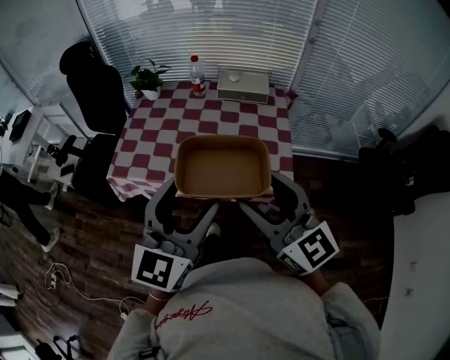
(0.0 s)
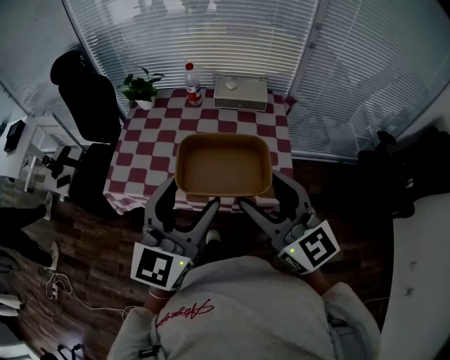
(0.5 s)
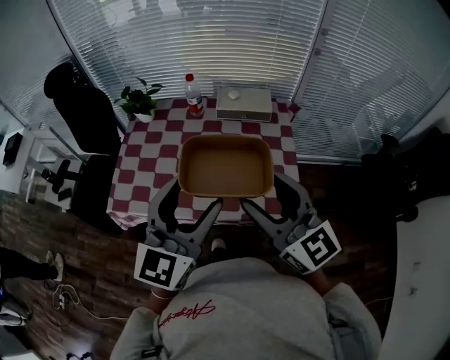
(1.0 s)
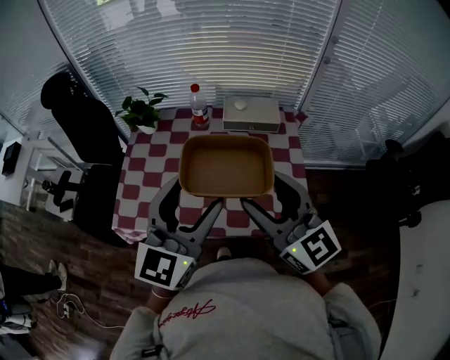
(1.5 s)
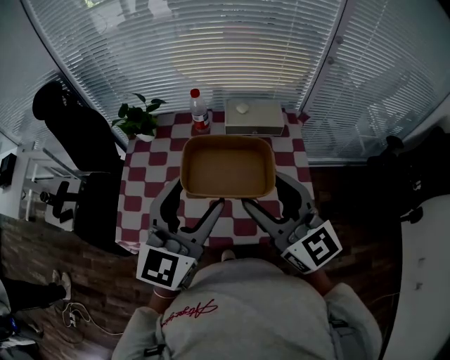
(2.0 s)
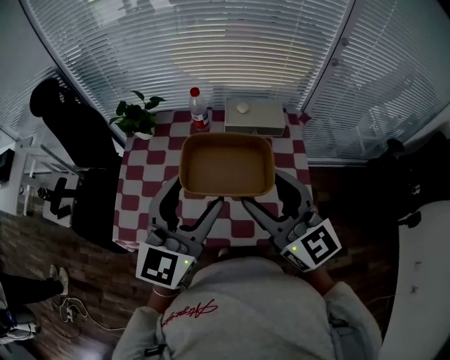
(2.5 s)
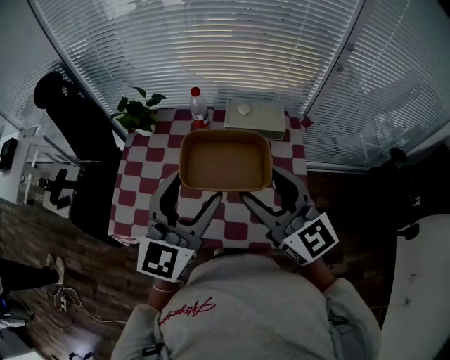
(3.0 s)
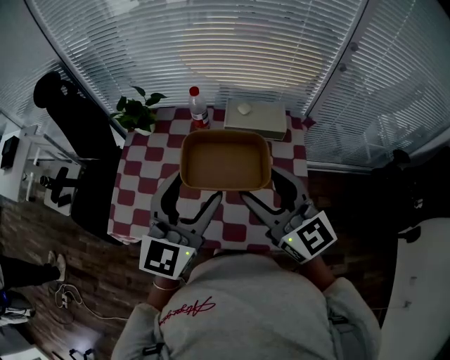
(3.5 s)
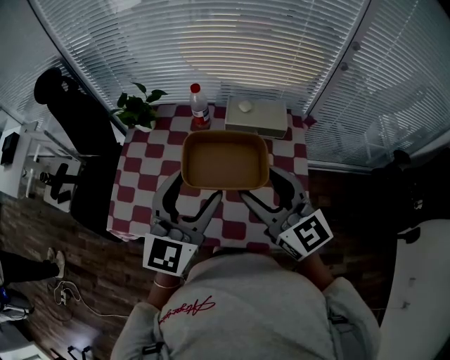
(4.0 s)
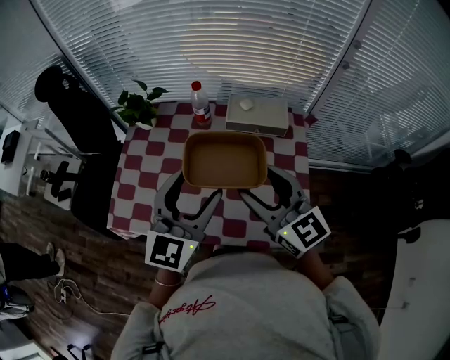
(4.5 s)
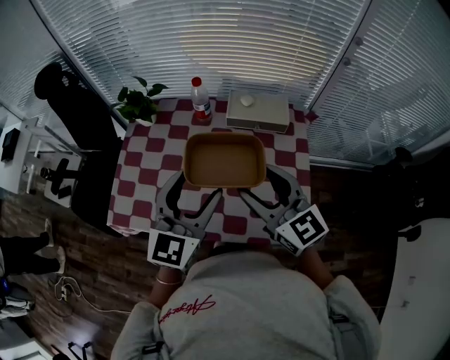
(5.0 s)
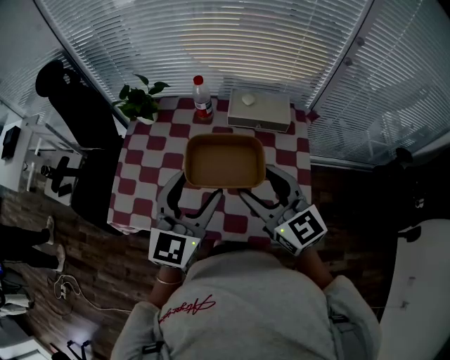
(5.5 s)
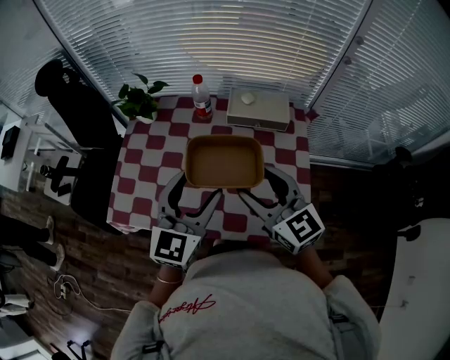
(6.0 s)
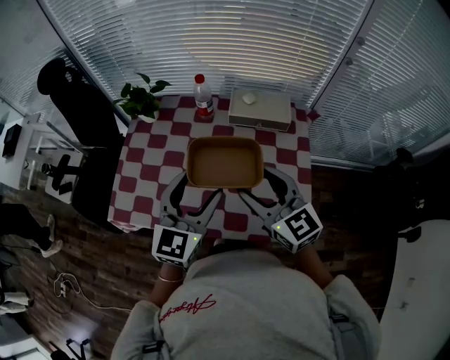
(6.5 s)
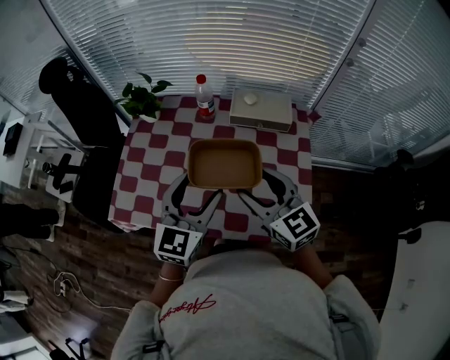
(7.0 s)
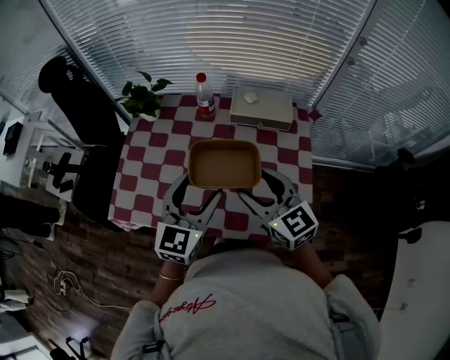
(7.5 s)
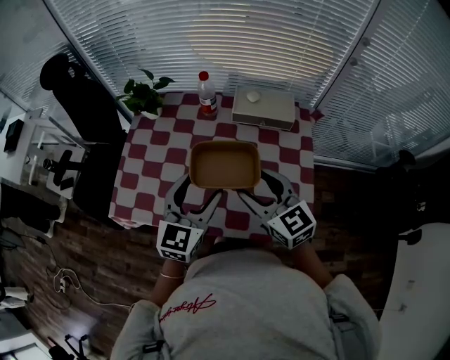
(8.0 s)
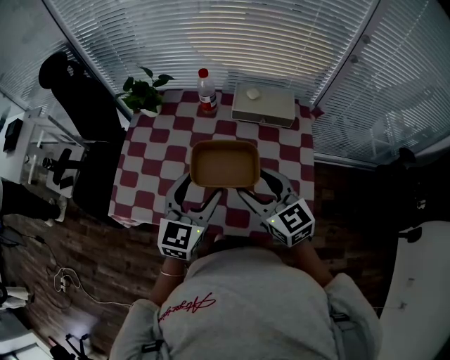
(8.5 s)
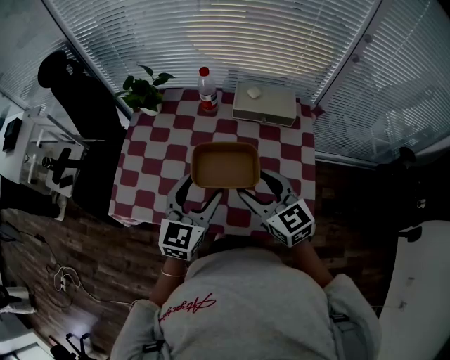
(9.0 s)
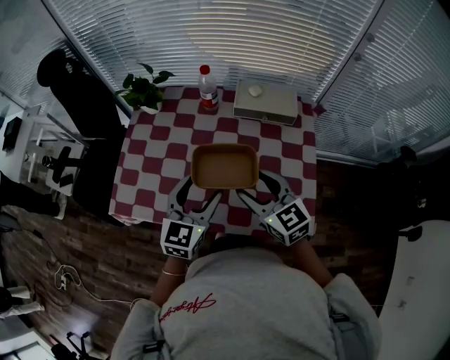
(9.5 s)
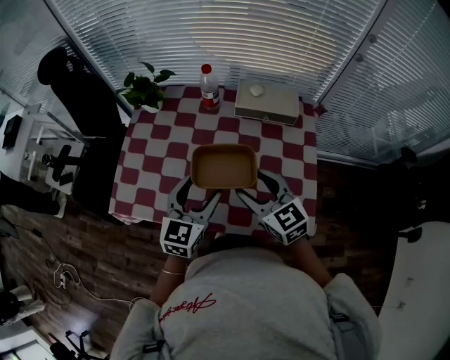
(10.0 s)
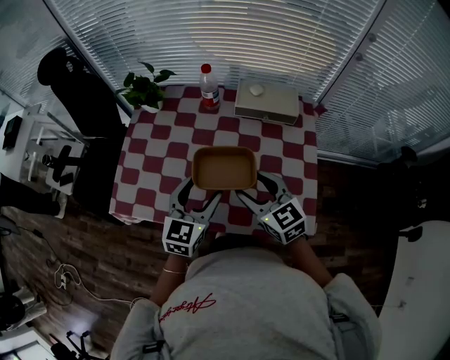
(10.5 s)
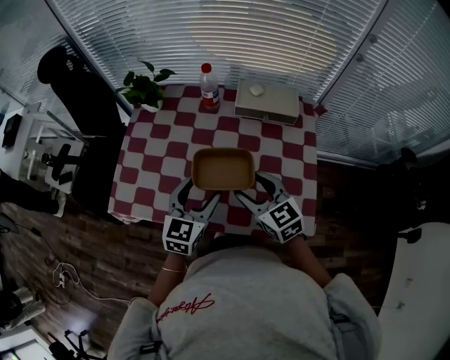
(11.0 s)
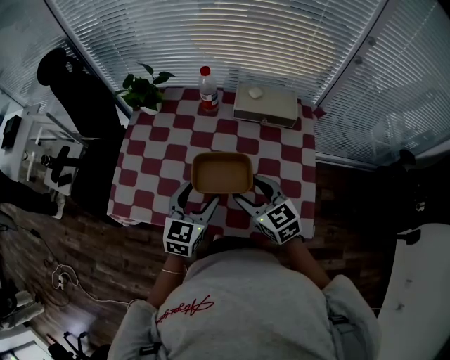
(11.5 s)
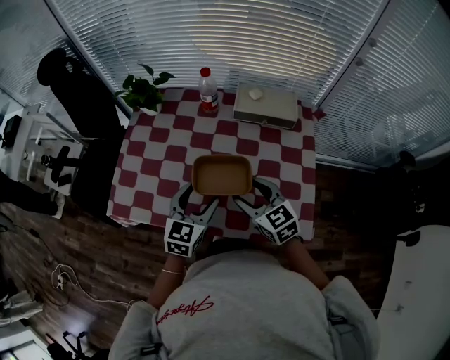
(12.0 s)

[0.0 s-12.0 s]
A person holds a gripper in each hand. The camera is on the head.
0.0 to 2.0 s: Both grippers travel together forward, about 25 cm.
2.0 to 4.0 s: The right gripper heads forward, covering approximately 5 cm; the left gripper moves approximately 5 cm.
4.0 to 6.0 s: The grippers move only a little.
6.0 to 8.0 s: The grippers stay close to where they were, moving slightly.
8.0 to 10.0 s: The left gripper moves roughly 5 cm.
10.0 to 12.0 s: The two grippers go roughly 5 cm downward.

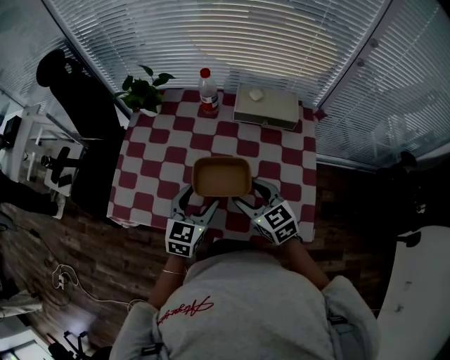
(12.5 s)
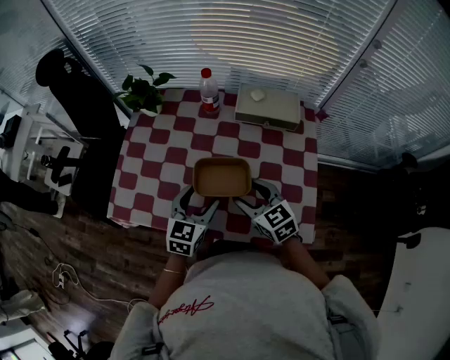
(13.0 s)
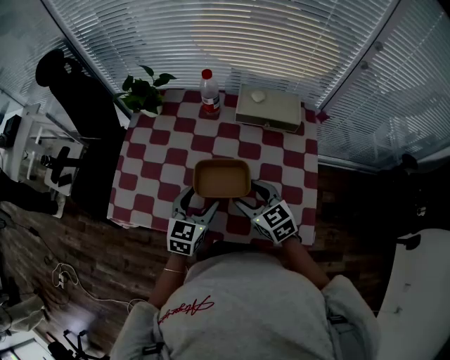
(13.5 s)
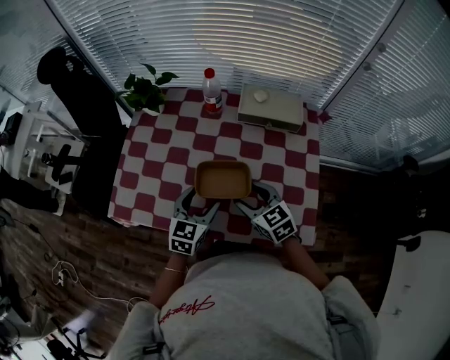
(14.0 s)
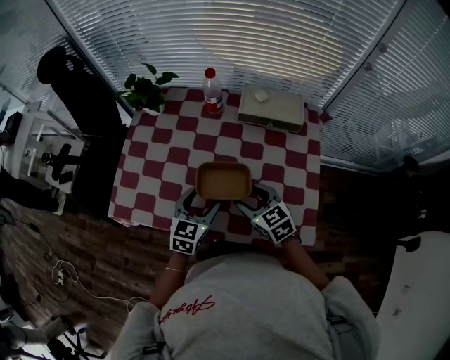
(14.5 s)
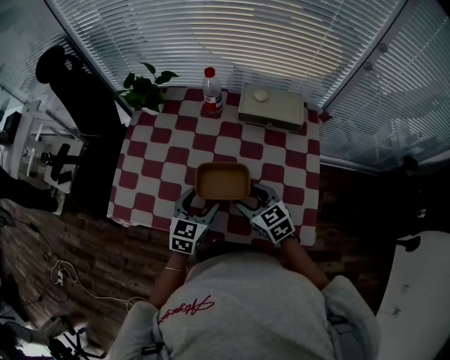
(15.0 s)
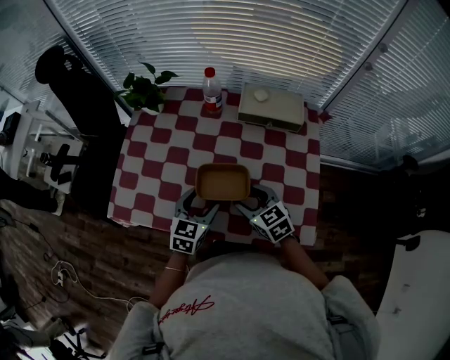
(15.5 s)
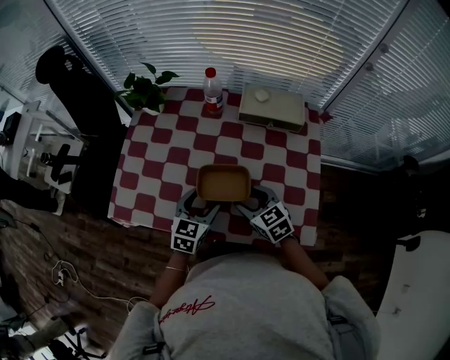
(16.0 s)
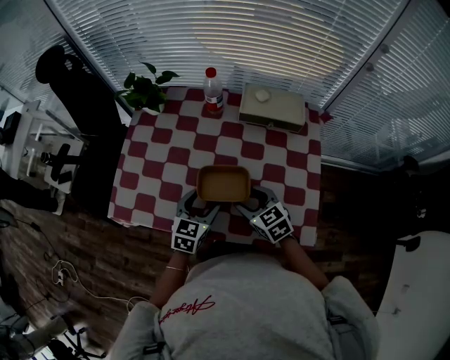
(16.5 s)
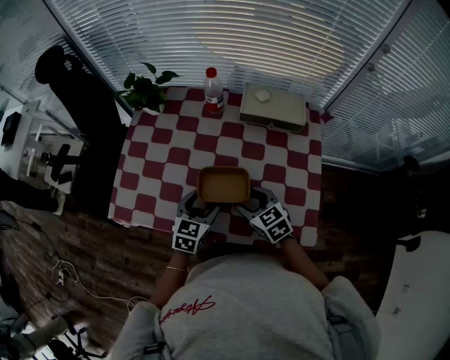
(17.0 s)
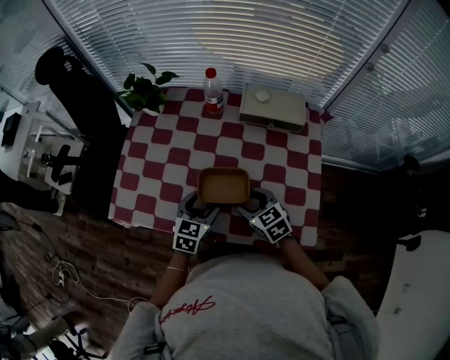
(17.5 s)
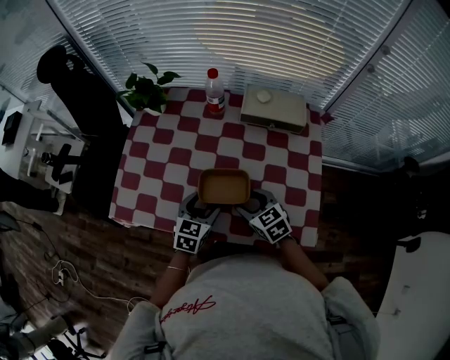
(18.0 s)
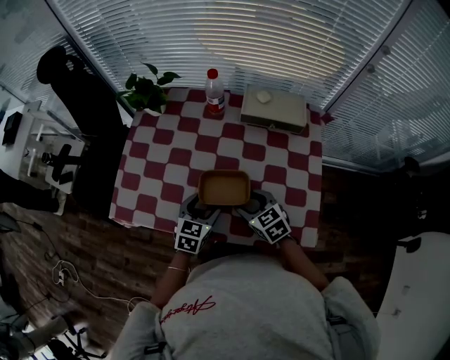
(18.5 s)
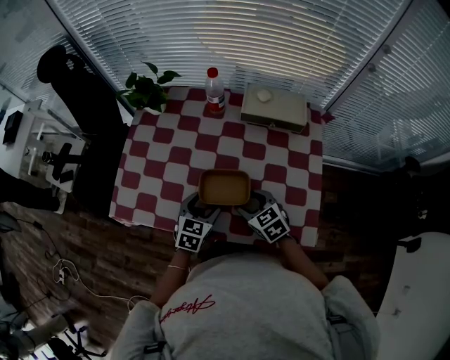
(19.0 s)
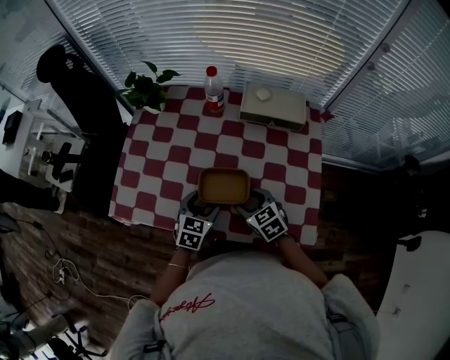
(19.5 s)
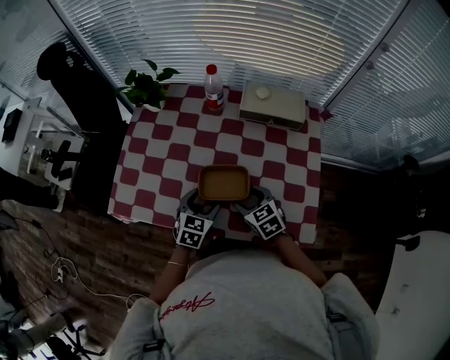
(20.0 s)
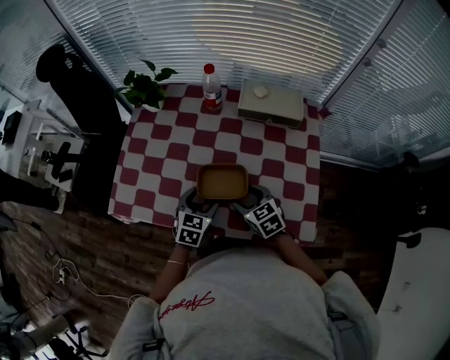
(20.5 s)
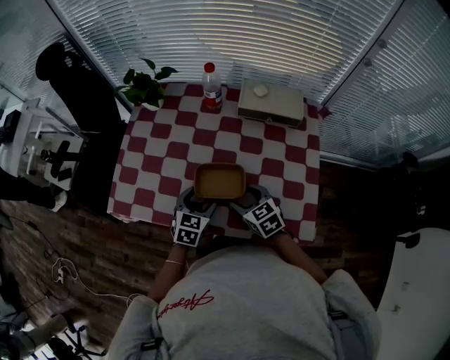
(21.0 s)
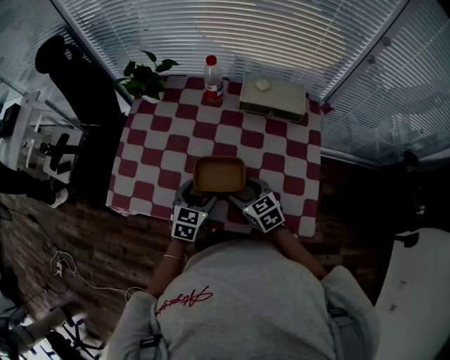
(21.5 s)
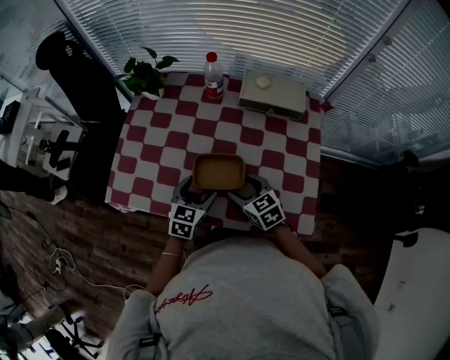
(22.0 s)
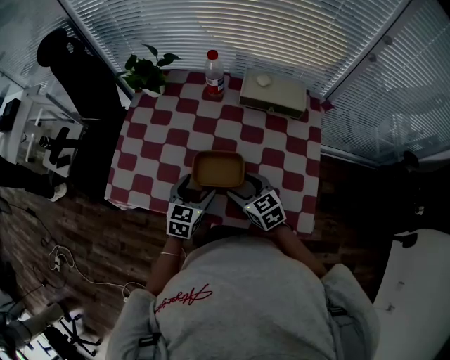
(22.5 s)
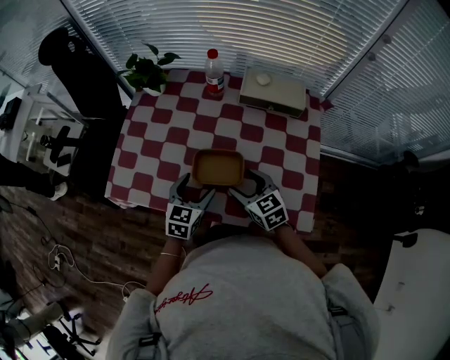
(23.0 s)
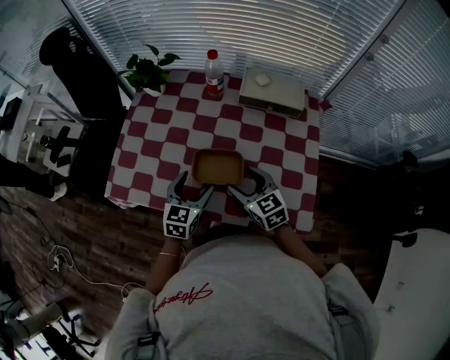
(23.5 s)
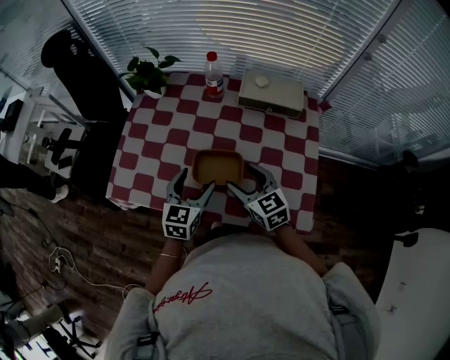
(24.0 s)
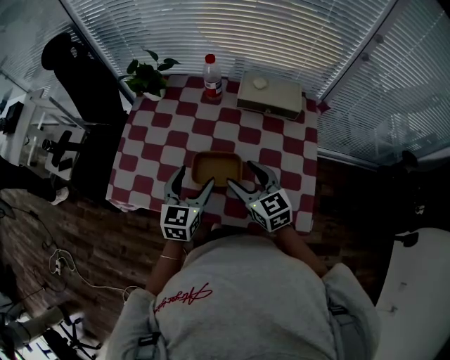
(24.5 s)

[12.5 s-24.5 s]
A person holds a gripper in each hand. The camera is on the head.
12.5 to 14.5 s: There are only small adjustments of the grippers.
14.5 to 18.5 s: The grippers move only a little.
18.5 to 22.5 s: There are only small adjustments of the grippers.
22.5 to 24.5 s: Both grippers travel together upward, roughly 10 cm.

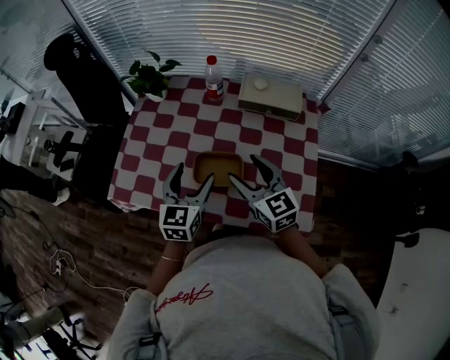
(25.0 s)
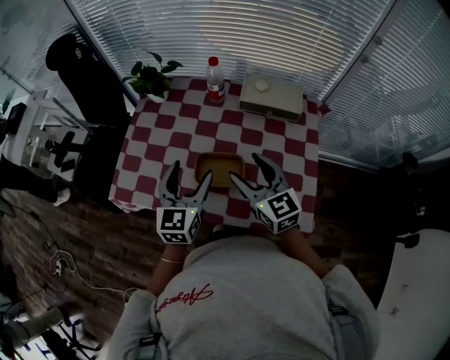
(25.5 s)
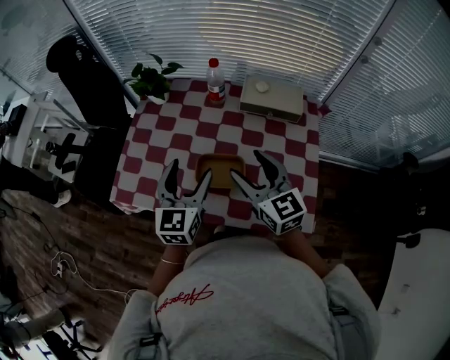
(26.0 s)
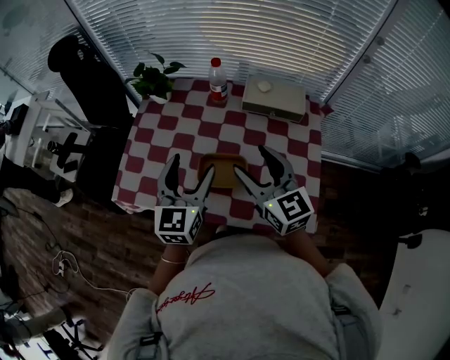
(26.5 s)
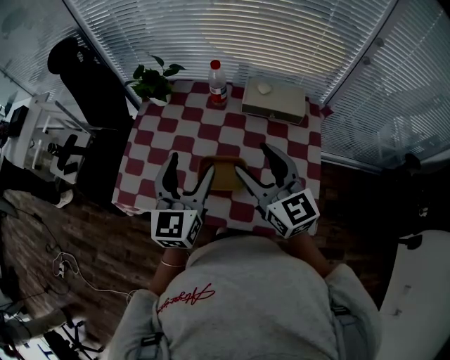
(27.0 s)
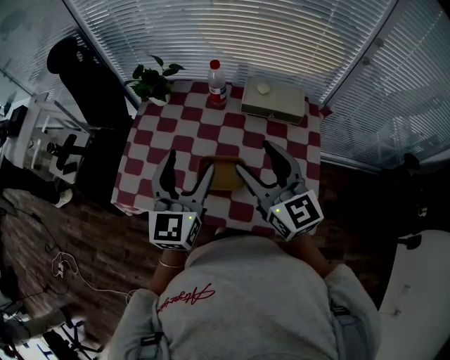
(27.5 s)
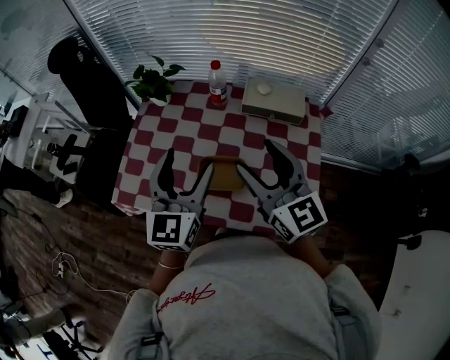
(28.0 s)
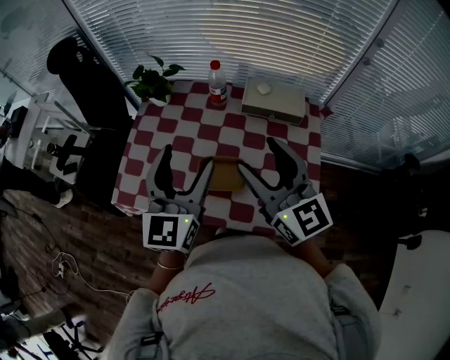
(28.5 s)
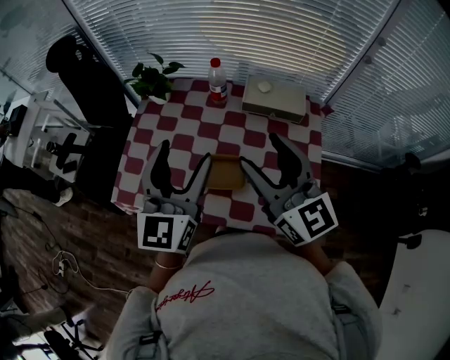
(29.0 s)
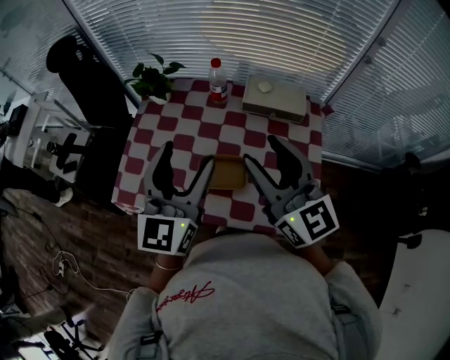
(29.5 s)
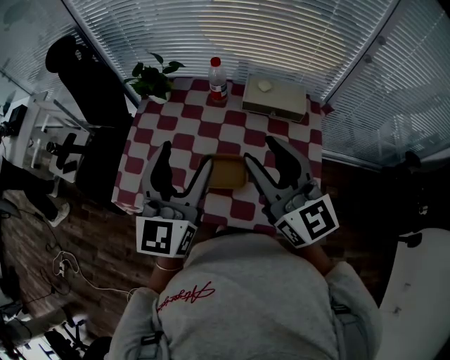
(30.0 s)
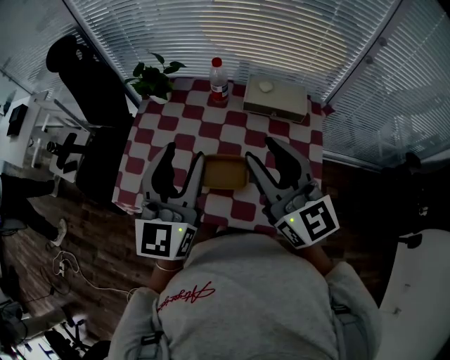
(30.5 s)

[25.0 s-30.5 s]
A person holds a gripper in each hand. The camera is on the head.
25.0 to 27.0 s: Both grippers travel together upward, about 10 cm.
27.0 to 28.5 s: The two grippers go roughly 5 cm upward.
28.5 to 30.5 s: The right gripper closes up.
